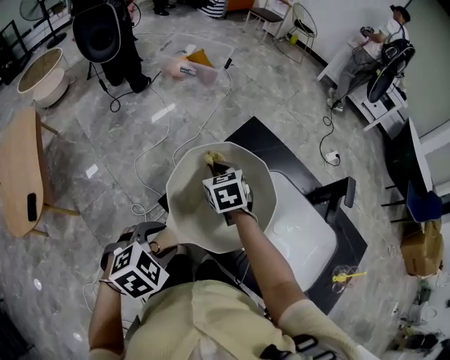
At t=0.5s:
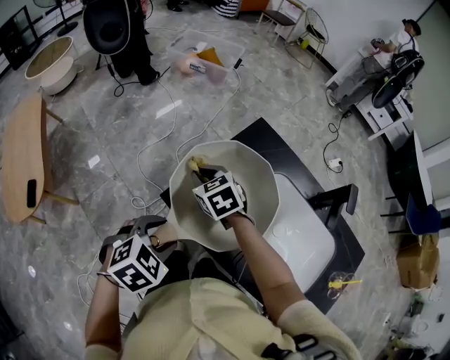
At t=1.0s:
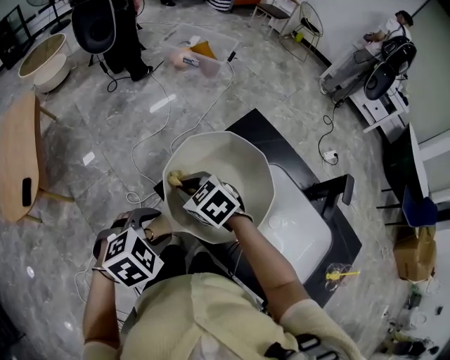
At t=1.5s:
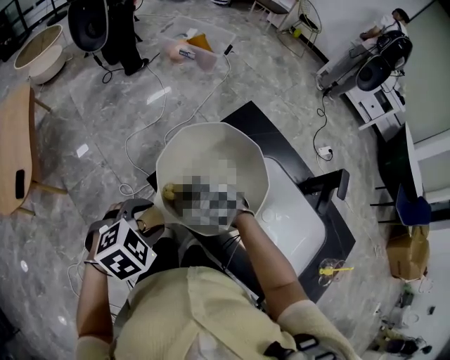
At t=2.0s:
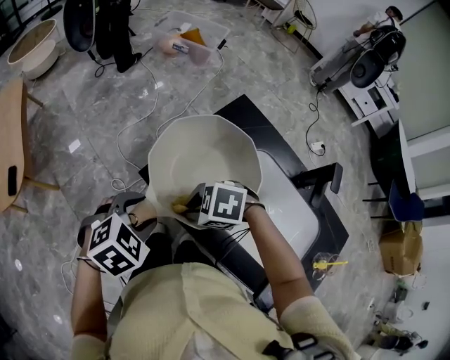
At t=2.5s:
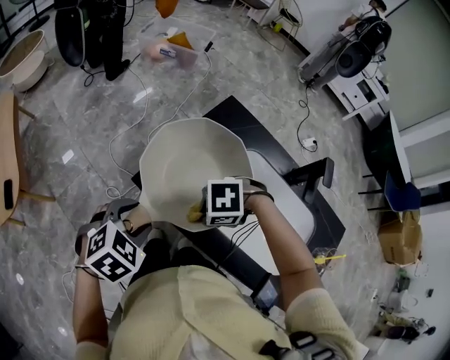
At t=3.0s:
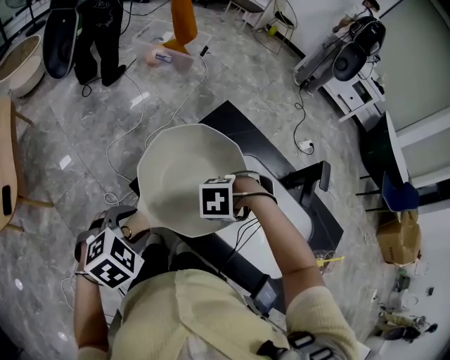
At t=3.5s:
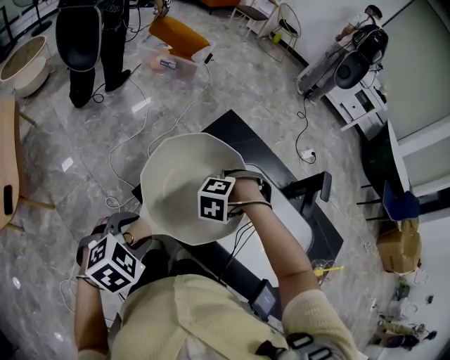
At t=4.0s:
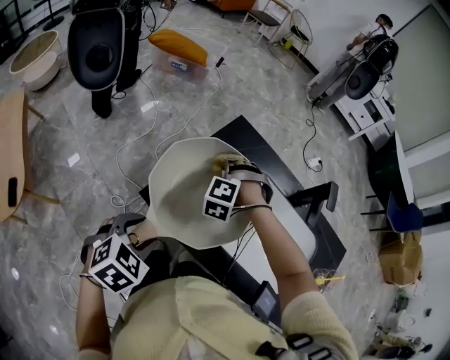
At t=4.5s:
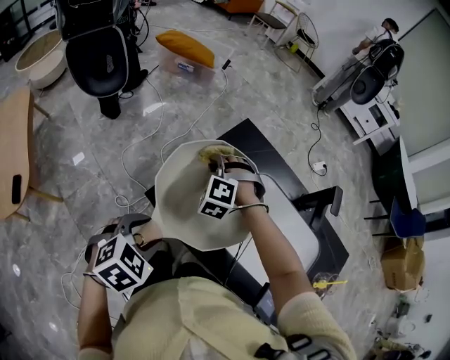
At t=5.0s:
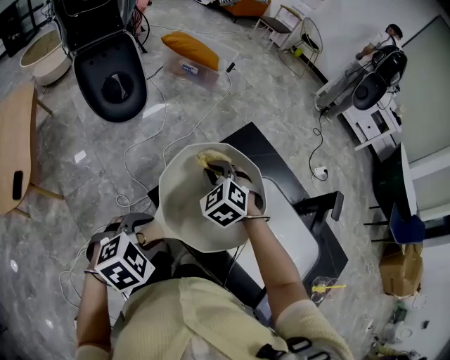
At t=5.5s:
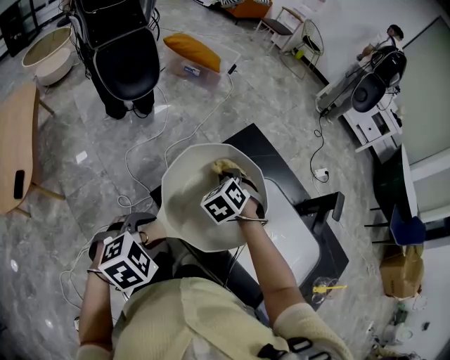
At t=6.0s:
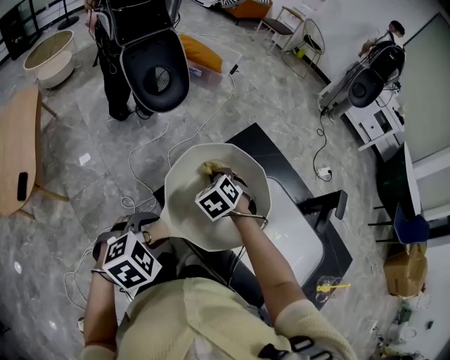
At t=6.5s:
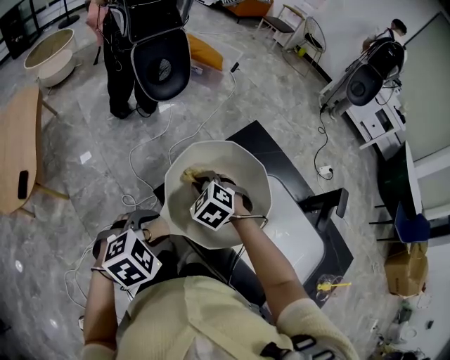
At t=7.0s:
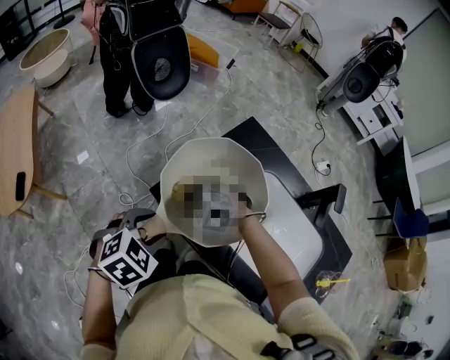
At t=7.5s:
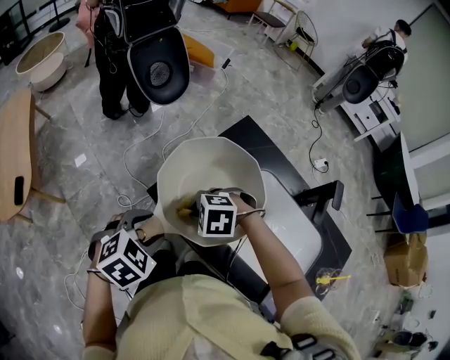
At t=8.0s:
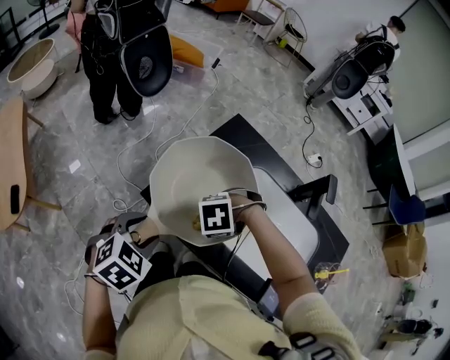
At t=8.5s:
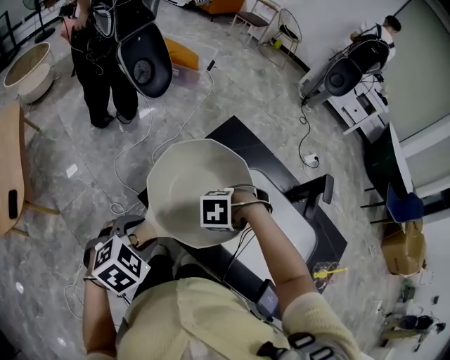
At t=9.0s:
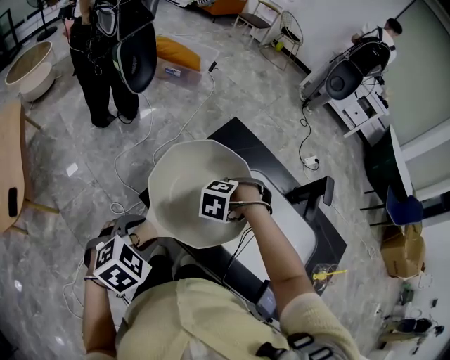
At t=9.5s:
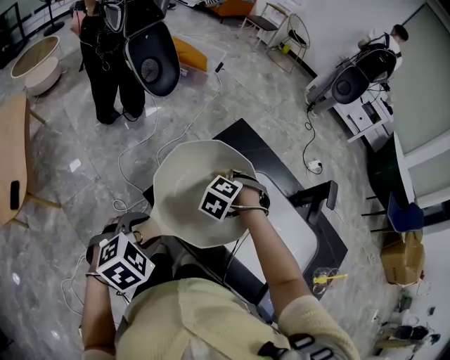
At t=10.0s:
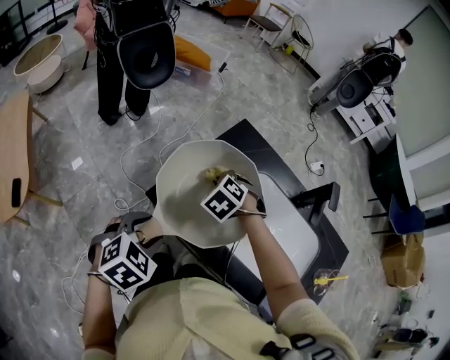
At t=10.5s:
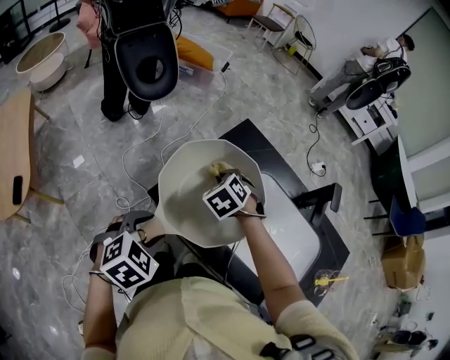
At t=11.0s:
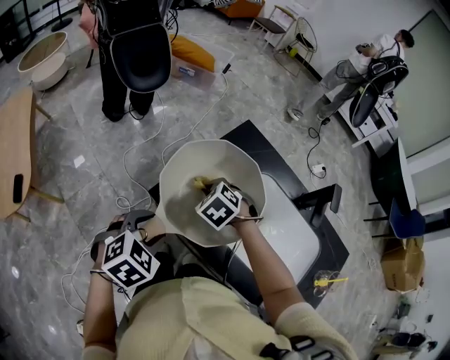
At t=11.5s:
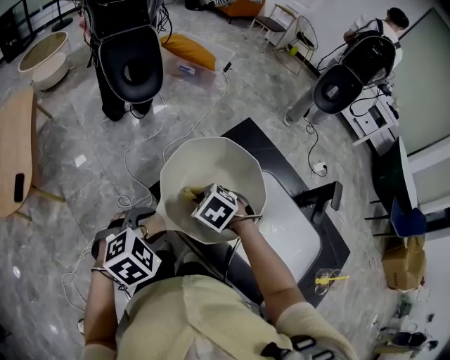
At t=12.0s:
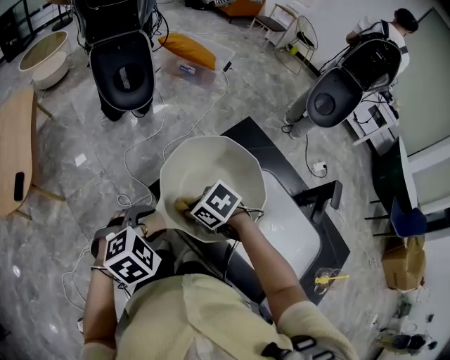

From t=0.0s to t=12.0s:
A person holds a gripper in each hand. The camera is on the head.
From t=0.0s to t=2.0s: The right gripper changes place by roughly 20 cm, and swivels some 70 degrees.
From t=2.0s to t=4.0s: The right gripper ends up some 20 cm from where it was, and turns by some 60 degrees.
From t=4.0s to t=6.0s: The right gripper shifts roughly 5 cm to the left, and changes its angle by about 40 degrees.
From t=6.0s to t=8.0s: The right gripper moves roughly 20 cm, and turns by approximately 60 degrees.
From t=8.0s to t=10.0s: The right gripper changes place by roughly 15 cm, and changes its angle by about 50 degrees.
From t=10.0s to t=12.0s: The right gripper moves approximately 15 cm, and swivels some 40 degrees.

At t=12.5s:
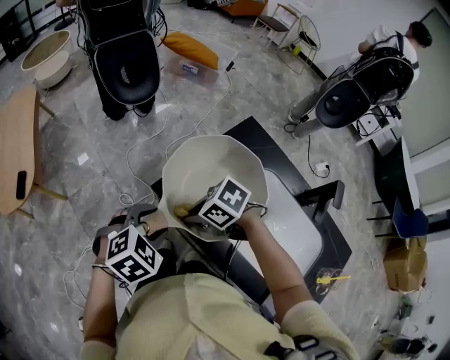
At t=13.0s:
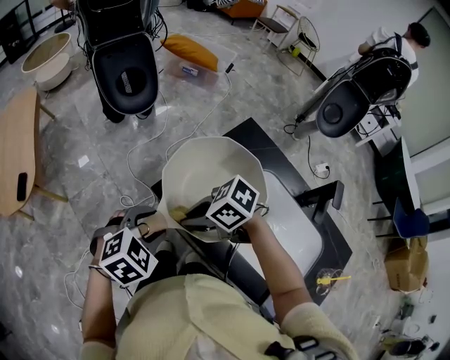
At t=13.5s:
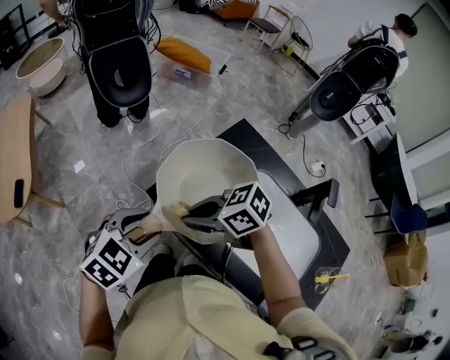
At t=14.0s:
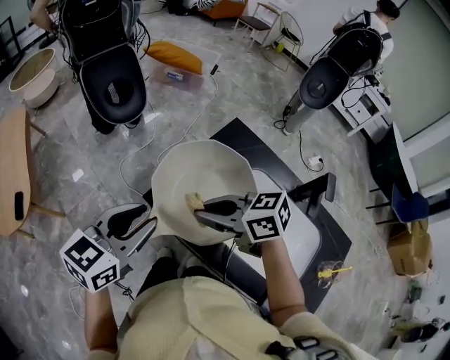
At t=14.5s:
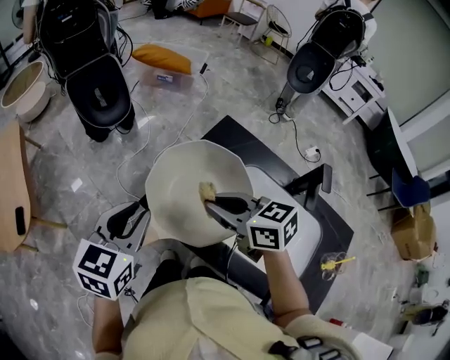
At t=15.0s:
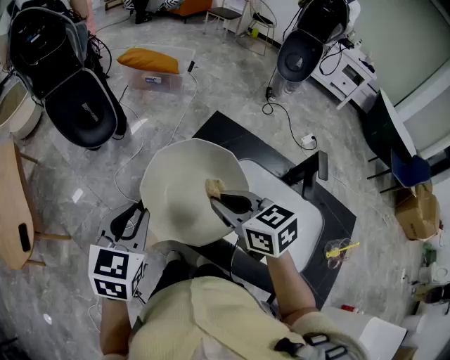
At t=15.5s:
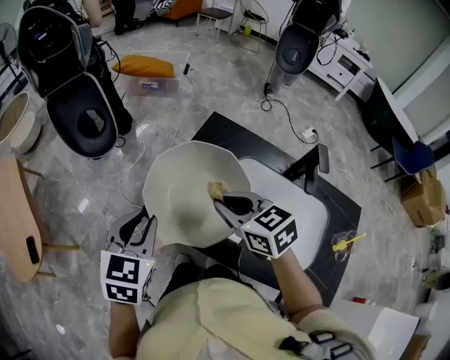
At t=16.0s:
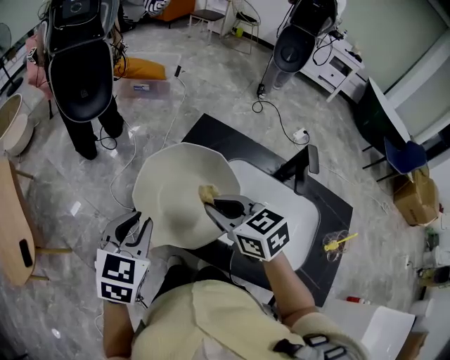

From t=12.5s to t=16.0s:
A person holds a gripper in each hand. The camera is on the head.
From t=12.5s to t=14.5s: Both grippers travel together upward, some 10 cm. The left gripper tips its fingers upward by about 30 degrees, and closes its fingers; the right gripper swivels roughly 50 degrees.
From t=14.5s to t=16.0s: The grippers move only a little.

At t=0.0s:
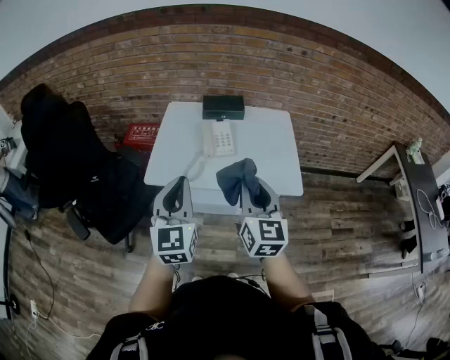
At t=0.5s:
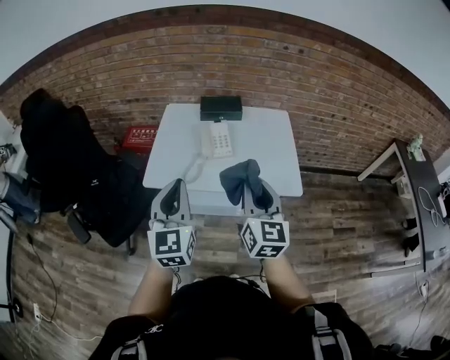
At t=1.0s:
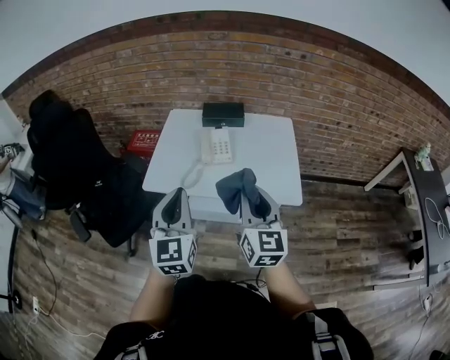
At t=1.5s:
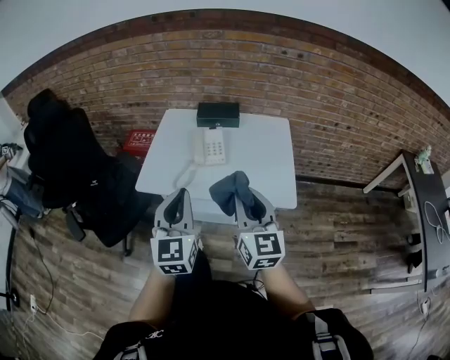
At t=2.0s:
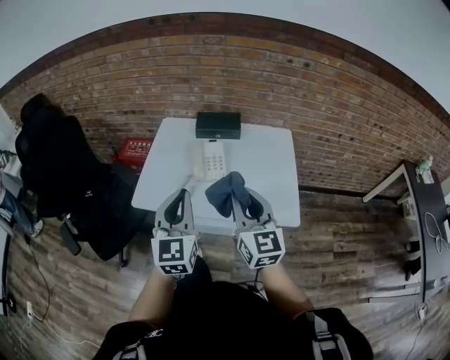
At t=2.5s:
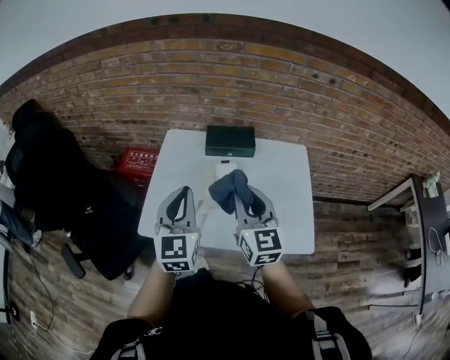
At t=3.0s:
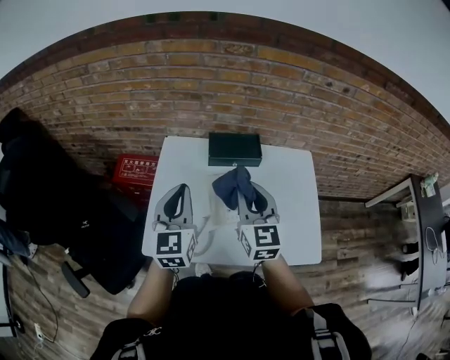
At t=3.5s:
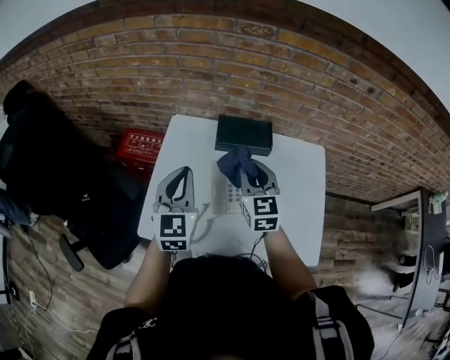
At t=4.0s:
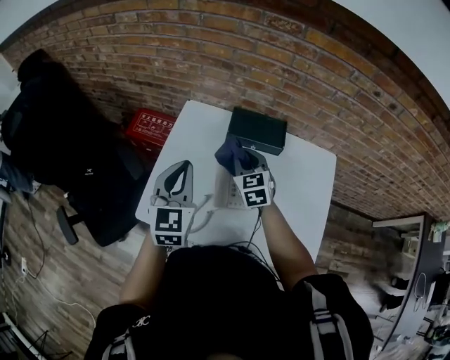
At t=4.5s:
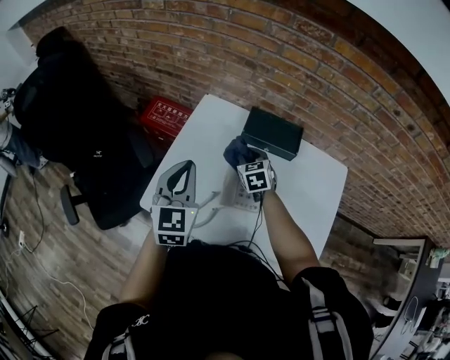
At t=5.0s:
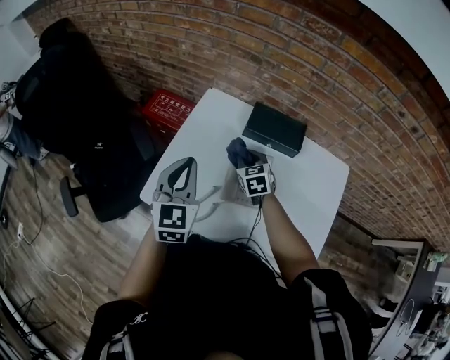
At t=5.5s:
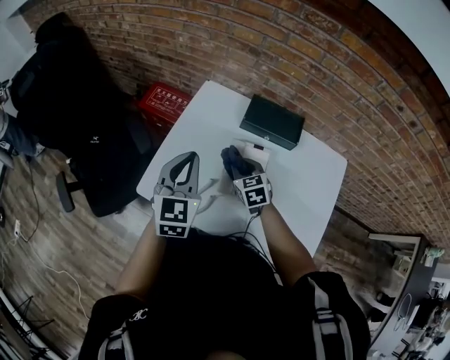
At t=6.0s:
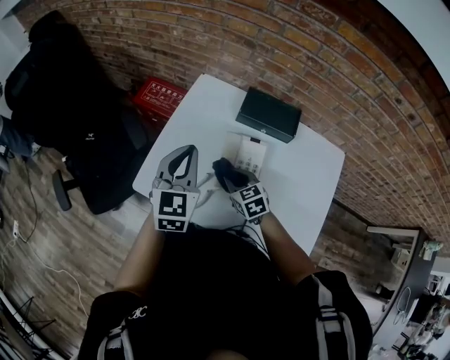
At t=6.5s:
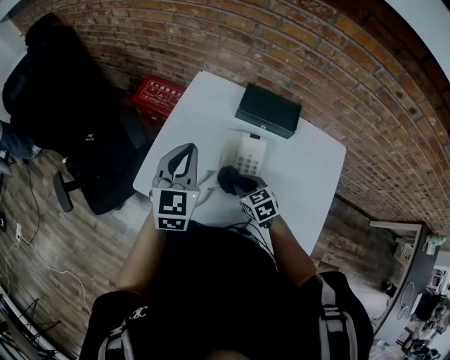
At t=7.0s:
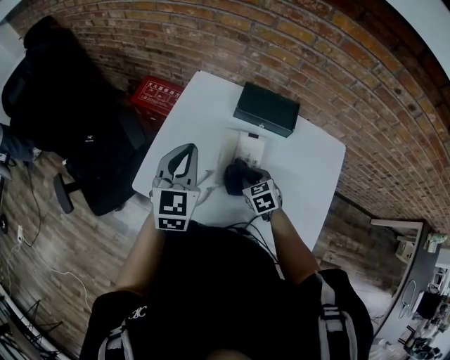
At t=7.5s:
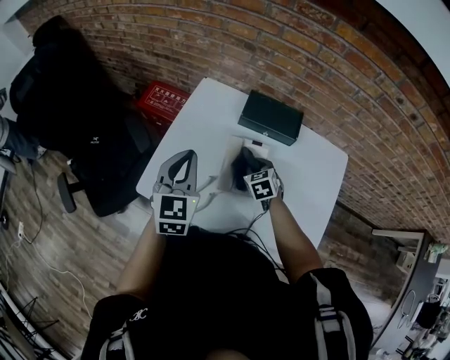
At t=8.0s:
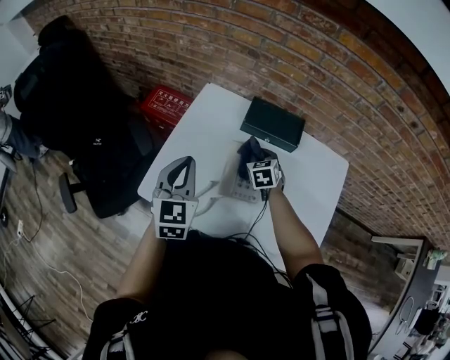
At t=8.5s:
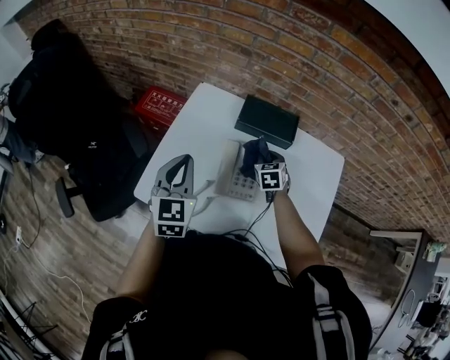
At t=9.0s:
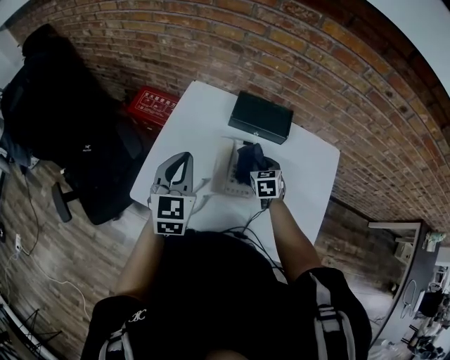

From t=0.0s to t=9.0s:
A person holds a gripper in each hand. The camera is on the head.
From t=0.0s to t=2.0s: The left gripper travels forward and to the right by some 10 cm, while the right gripper shifts approximately 10 cm forward.
From t=2.0s to t=4.5s: The right gripper goes roughly 50 cm forward and downward, and points its fingers roughly 40 degrees further downward. Meanwhile the left gripper travels forward by approximately 30 cm.
From t=4.5s to t=7.0s: The right gripper is displaced backward and downward by some 15 cm.
From t=7.0s to t=9.0s: The right gripper moves forward and to the right, approximately 10 cm.

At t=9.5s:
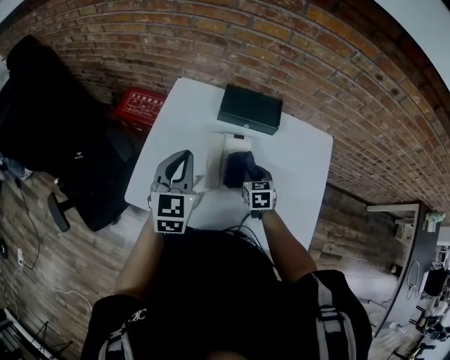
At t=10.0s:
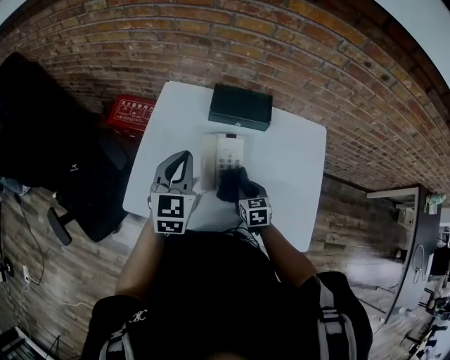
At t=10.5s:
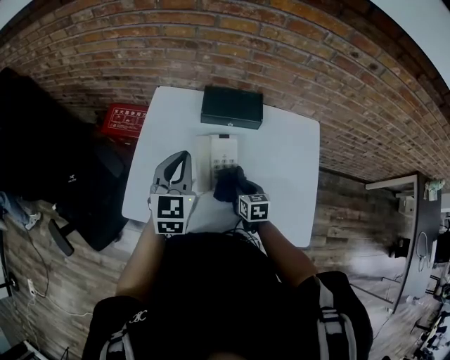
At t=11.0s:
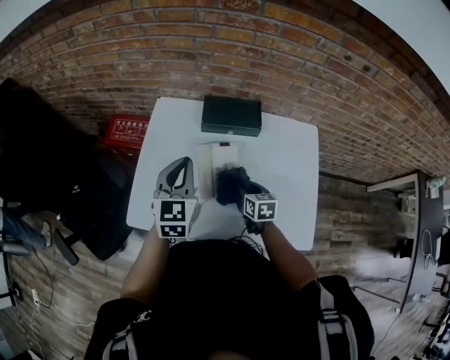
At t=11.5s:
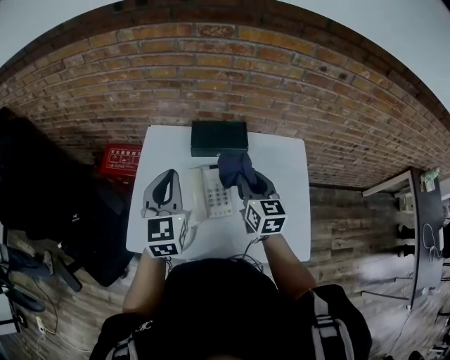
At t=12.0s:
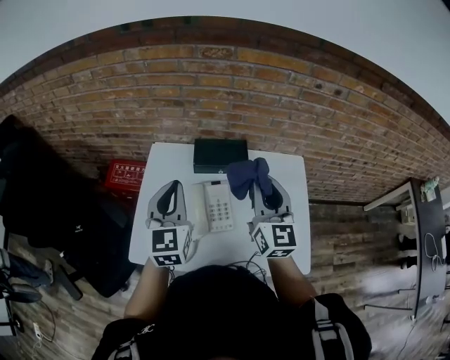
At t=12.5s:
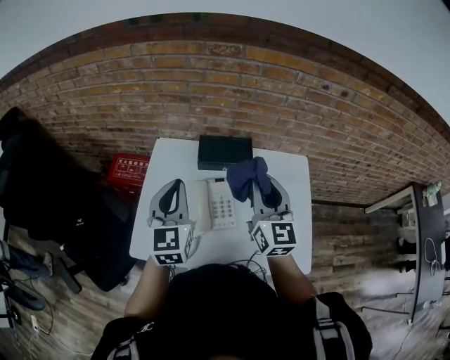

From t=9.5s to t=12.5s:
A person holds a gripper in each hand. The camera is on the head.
From t=9.5s to t=11.0s: The right gripper changes place by roughly 5 cm, and rotates some 20 degrees.
From t=11.0s to t=12.5s: The right gripper heads upward, covering about 30 cm, and tips its fingers upward by roughly 40 degrees; the left gripper moves upward, about 10 cm.
